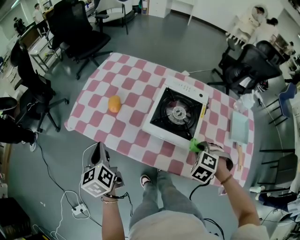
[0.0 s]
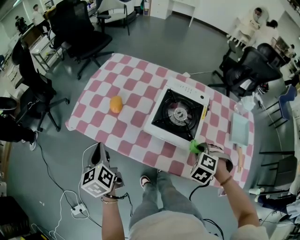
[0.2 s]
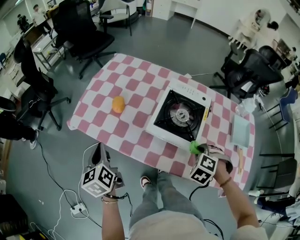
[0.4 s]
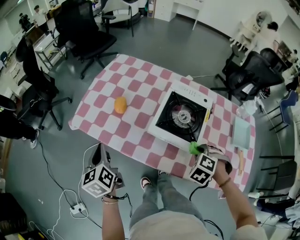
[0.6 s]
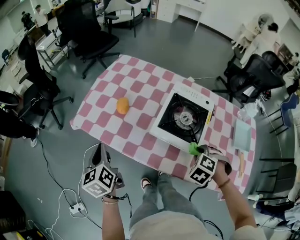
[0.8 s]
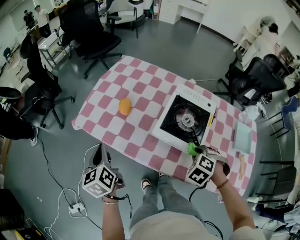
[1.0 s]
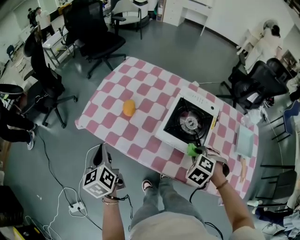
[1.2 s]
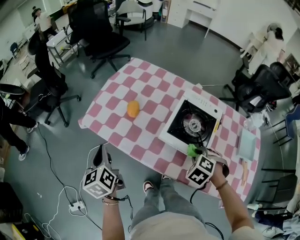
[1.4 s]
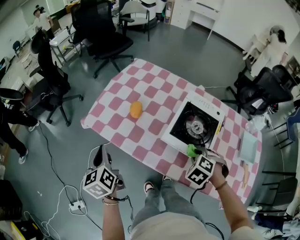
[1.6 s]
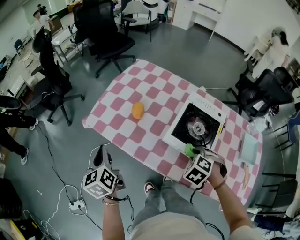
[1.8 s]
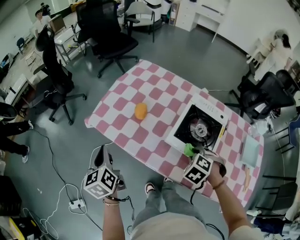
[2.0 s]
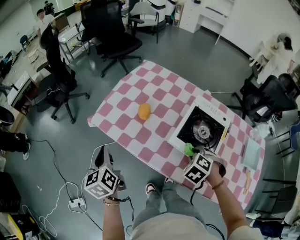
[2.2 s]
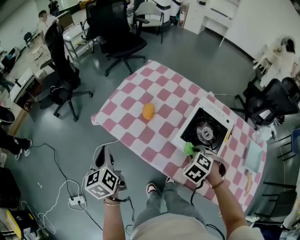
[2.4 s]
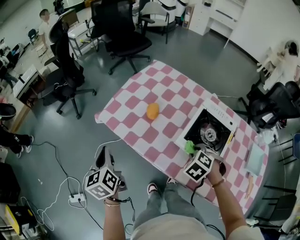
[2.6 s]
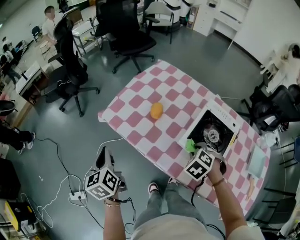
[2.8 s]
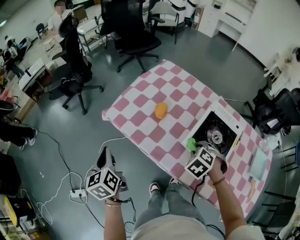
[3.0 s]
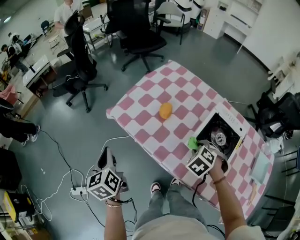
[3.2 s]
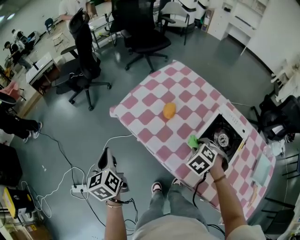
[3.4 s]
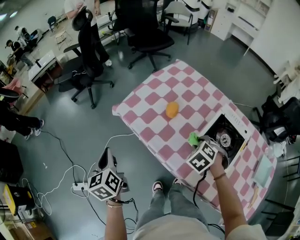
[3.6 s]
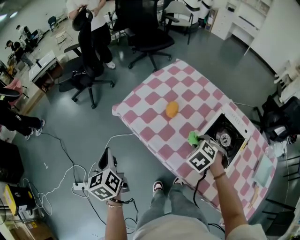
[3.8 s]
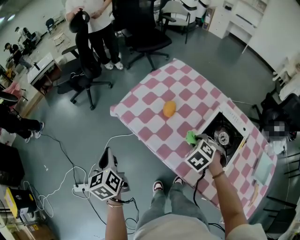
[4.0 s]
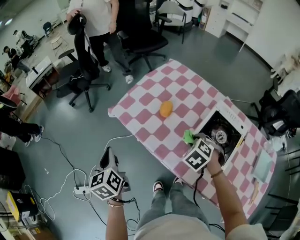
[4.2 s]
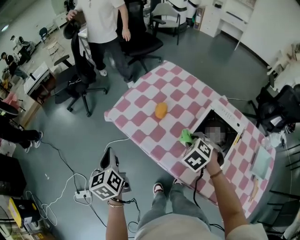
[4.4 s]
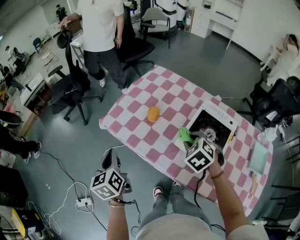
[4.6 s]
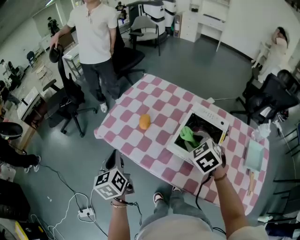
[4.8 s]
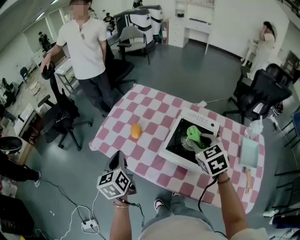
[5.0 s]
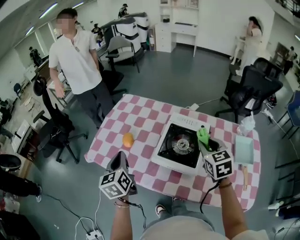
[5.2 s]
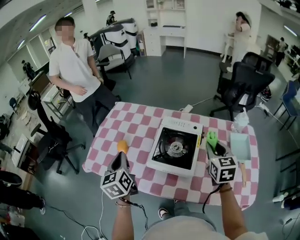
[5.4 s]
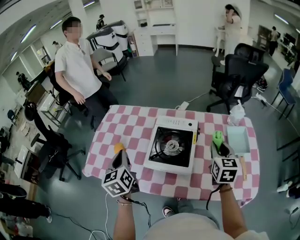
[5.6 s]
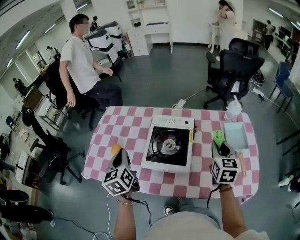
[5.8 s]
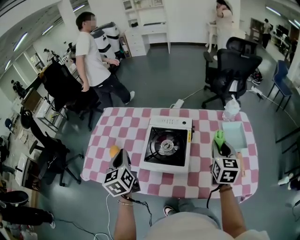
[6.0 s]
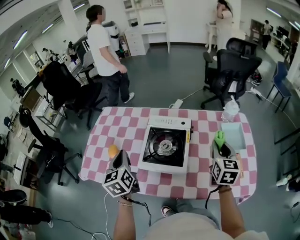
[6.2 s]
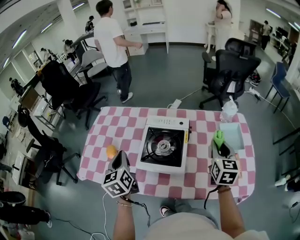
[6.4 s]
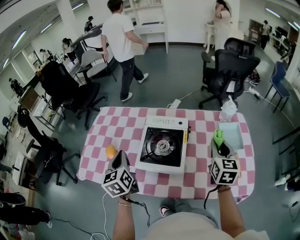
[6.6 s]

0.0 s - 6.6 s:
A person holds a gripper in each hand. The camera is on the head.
0.0 s - 1.6 s: The grippers both shift to the left by some 10 cm.
1.6 s - 3.2 s: The left gripper shifts approximately 10 cm to the left and backward. The right gripper goes about 15 cm to the left and forward.
3.2 s - 5.0 s: The left gripper travels to the right by approximately 20 cm, and rotates about 20 degrees. Meanwhile the right gripper goes about 20 cm upward and to the right, and changes its angle by about 50 degrees.
5.0 s - 6.6 s: The right gripper ends up roughly 25 cm from where it was, and changes its angle by roughly 50 degrees. Meanwhile the left gripper shifts by about 20 cm.

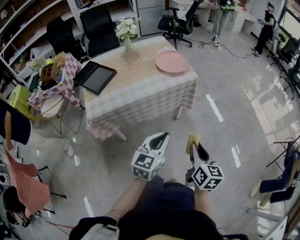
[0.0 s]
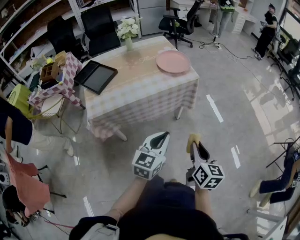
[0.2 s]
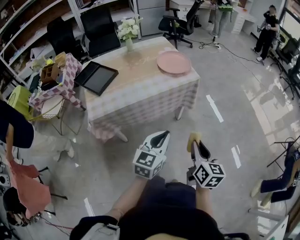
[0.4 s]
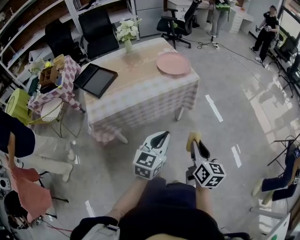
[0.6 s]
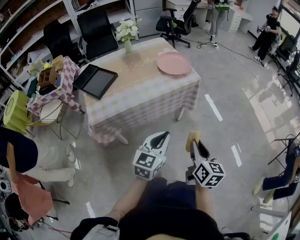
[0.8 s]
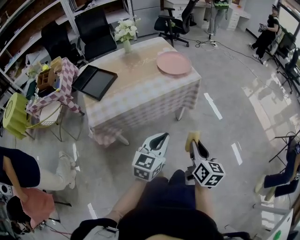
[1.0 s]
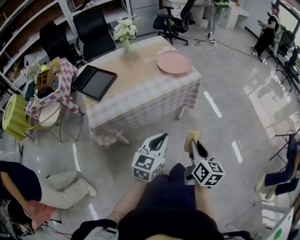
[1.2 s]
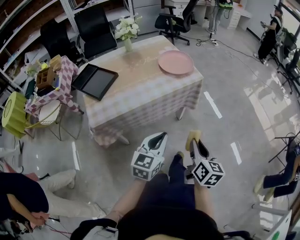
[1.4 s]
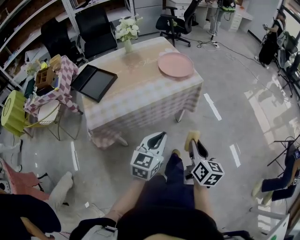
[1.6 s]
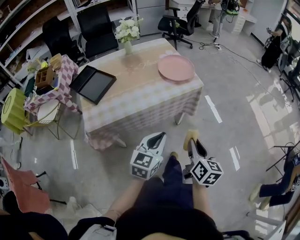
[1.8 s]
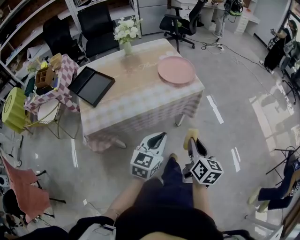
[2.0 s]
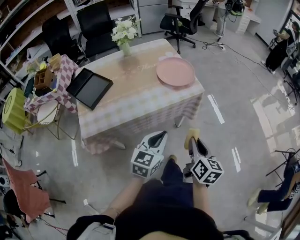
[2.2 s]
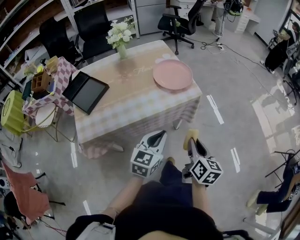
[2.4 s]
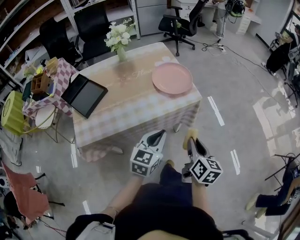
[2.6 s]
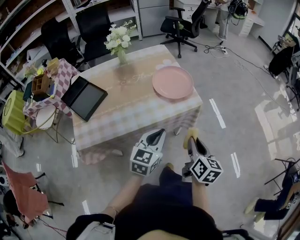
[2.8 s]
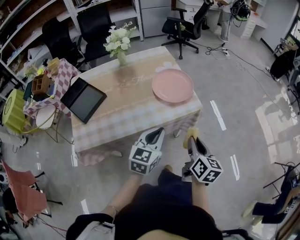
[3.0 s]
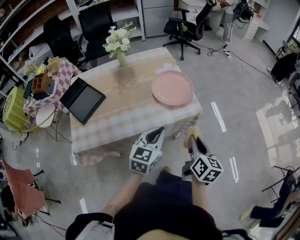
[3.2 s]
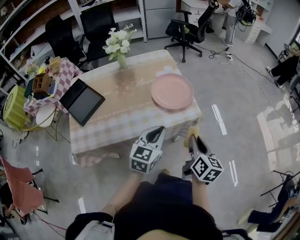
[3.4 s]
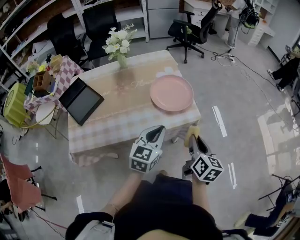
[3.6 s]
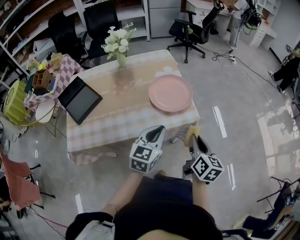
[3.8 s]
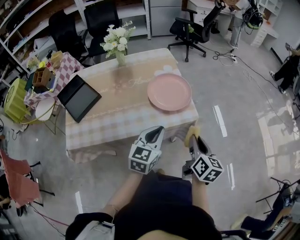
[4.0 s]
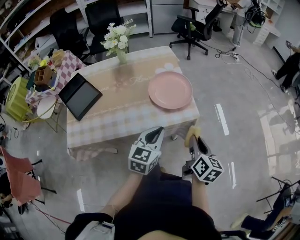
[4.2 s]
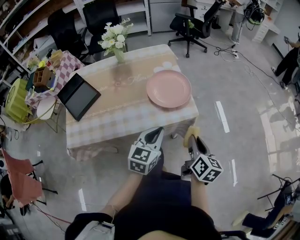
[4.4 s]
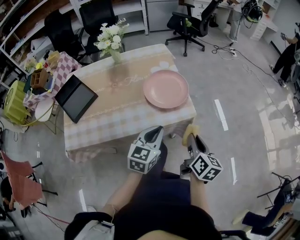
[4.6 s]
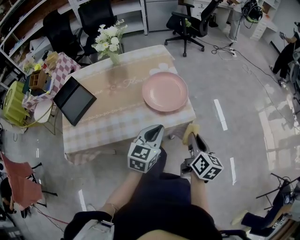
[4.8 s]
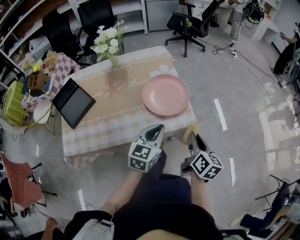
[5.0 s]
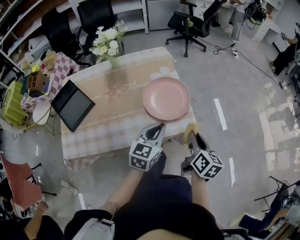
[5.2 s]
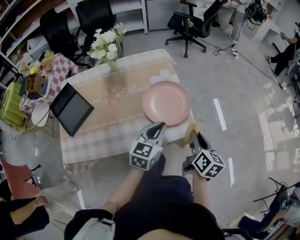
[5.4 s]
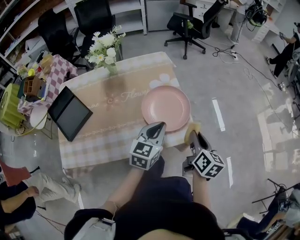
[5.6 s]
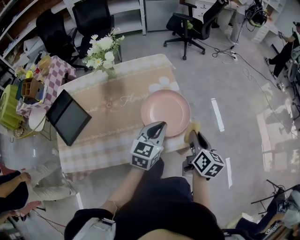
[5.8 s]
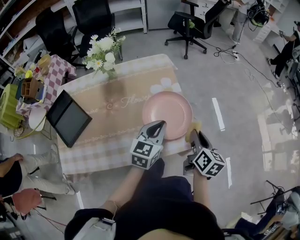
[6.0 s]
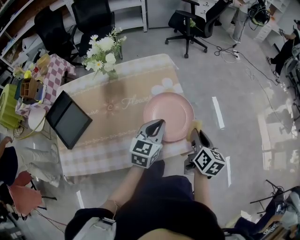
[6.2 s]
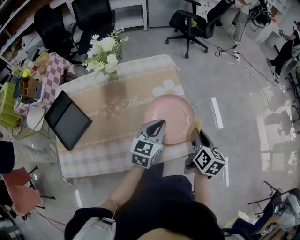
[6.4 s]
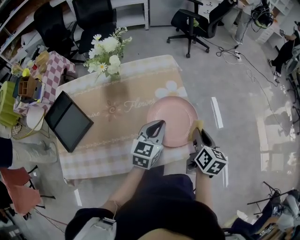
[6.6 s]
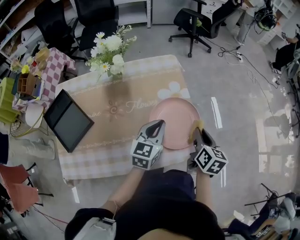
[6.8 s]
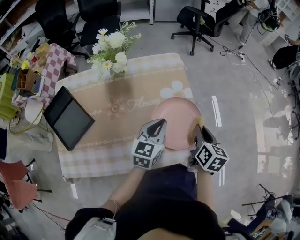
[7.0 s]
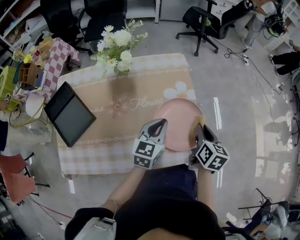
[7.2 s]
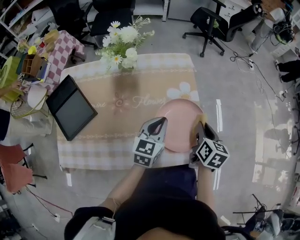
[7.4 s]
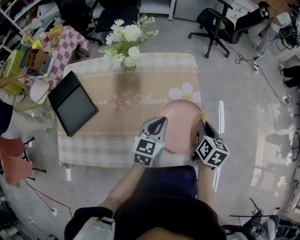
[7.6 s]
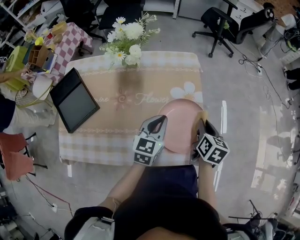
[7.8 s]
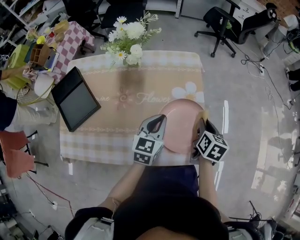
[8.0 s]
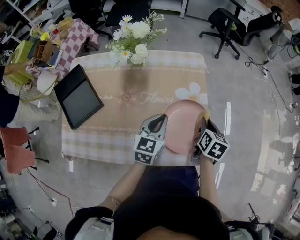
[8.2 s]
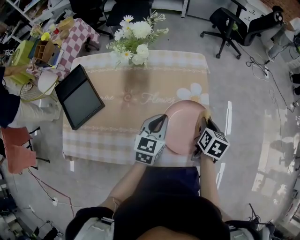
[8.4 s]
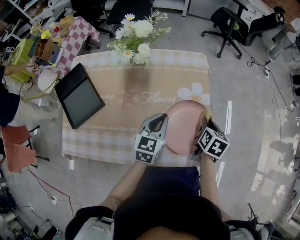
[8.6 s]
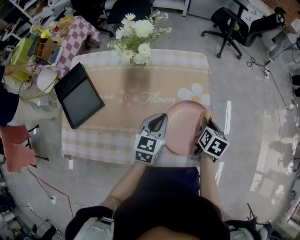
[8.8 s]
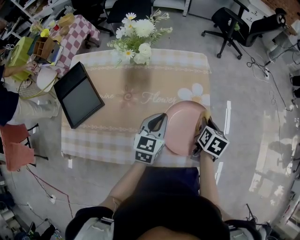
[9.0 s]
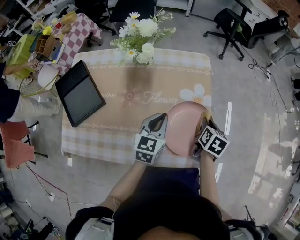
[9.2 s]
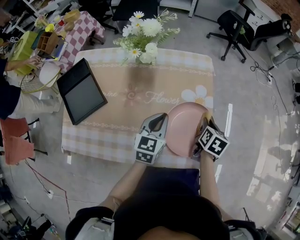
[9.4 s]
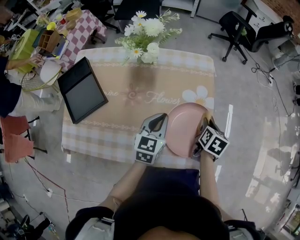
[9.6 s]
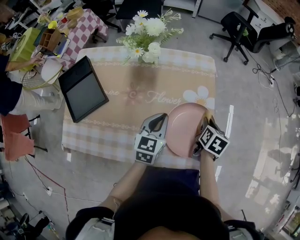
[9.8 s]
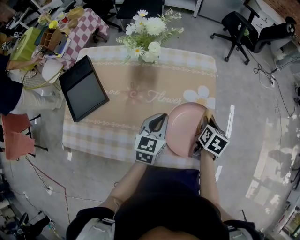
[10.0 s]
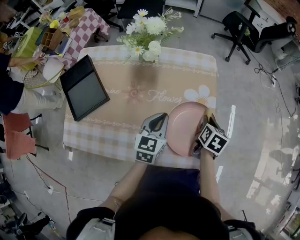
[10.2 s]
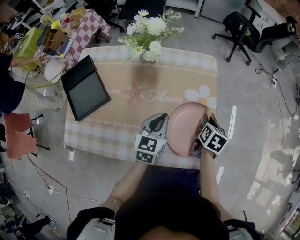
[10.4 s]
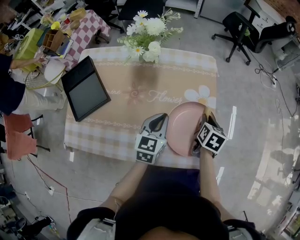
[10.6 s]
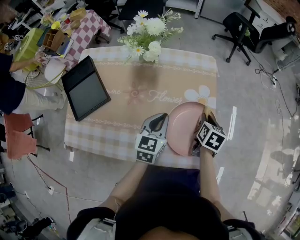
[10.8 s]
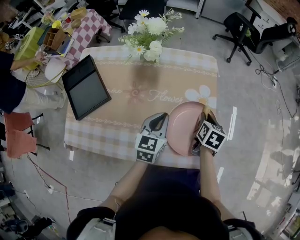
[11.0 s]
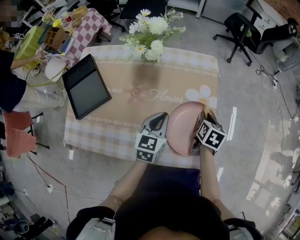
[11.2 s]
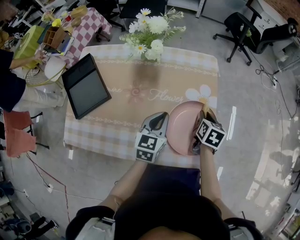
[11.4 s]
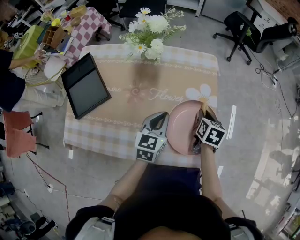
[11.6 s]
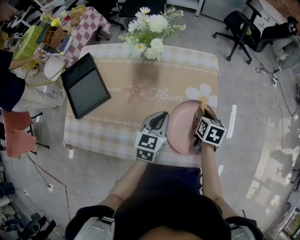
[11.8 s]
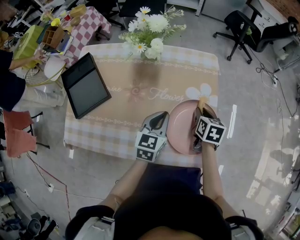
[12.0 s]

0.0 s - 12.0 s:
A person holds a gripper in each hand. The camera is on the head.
0.0 s - 1.6 s: The left gripper travels to the left by some 5 cm. Meanwhile the right gripper is displaced to the left and forward by approximately 10 cm.
1.6 s - 3.0 s: Both grippers move forward, about 20 cm.
3.0 s - 4.4 s: Both grippers move forward, approximately 5 cm.
4.4 s - 6.0 s: The grippers both shift forward by roughly 20 cm.
6.0 s - 7.6 s: The right gripper shifts some 15 cm forward and to the left. The left gripper travels to the left and forward by some 10 cm.
7.6 s - 9.0 s: The right gripper is displaced downward by some 5 cm.
9.0 s - 10.4 s: The grippers stay close to where they were, moving slightly.
10.4 s - 12.0 s: The right gripper shifts by approximately 5 cm.

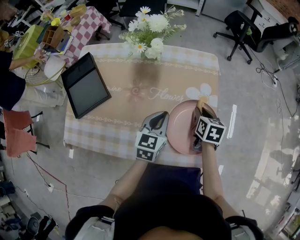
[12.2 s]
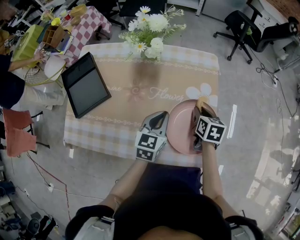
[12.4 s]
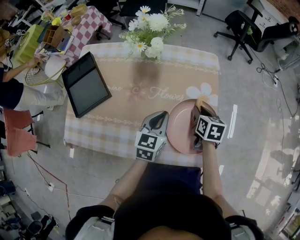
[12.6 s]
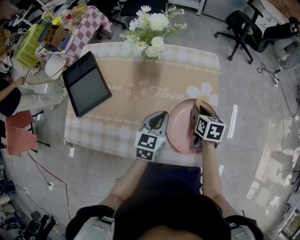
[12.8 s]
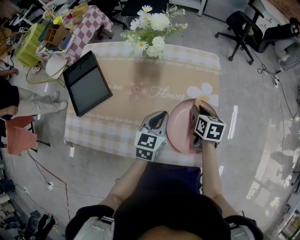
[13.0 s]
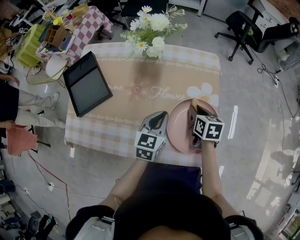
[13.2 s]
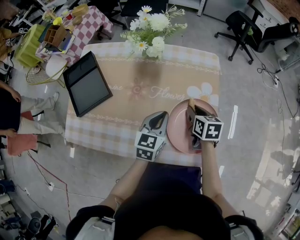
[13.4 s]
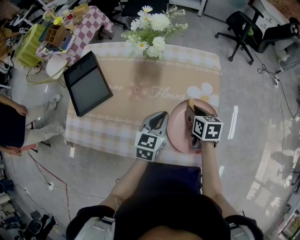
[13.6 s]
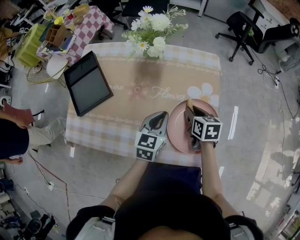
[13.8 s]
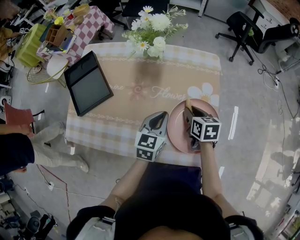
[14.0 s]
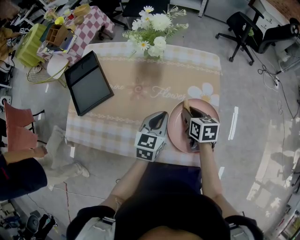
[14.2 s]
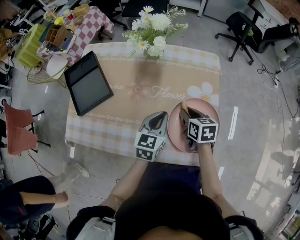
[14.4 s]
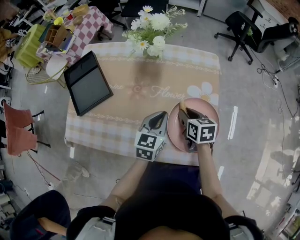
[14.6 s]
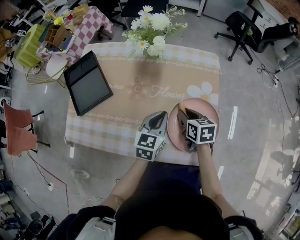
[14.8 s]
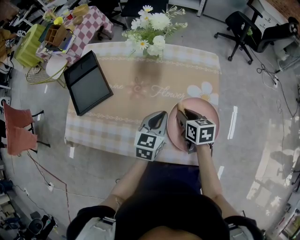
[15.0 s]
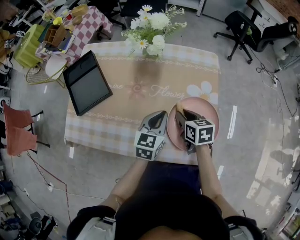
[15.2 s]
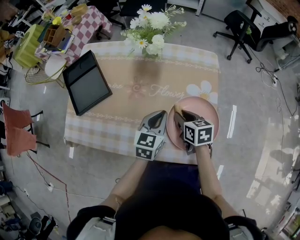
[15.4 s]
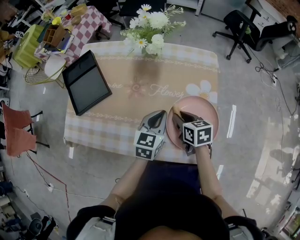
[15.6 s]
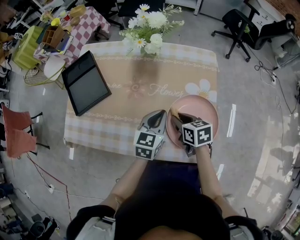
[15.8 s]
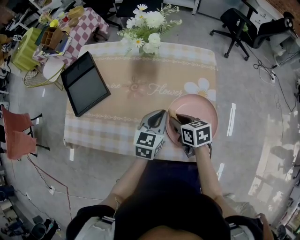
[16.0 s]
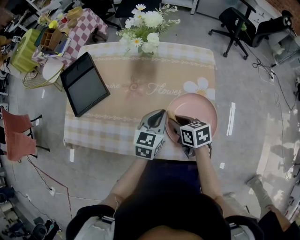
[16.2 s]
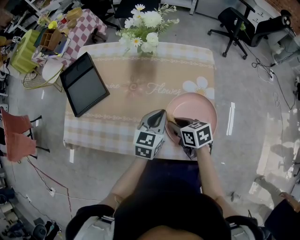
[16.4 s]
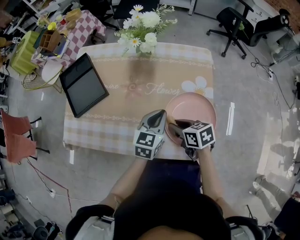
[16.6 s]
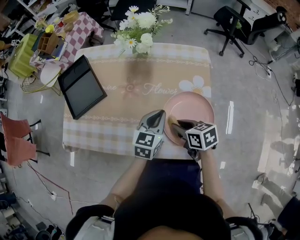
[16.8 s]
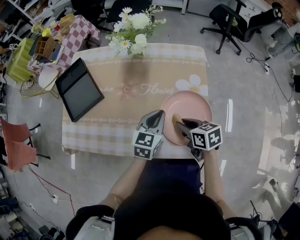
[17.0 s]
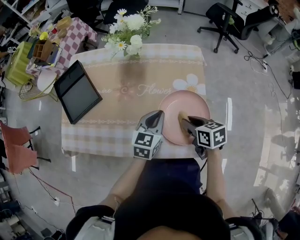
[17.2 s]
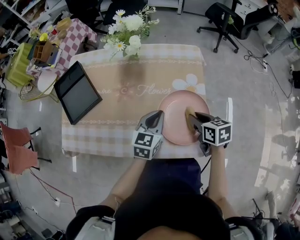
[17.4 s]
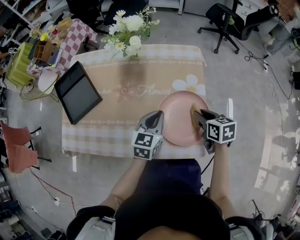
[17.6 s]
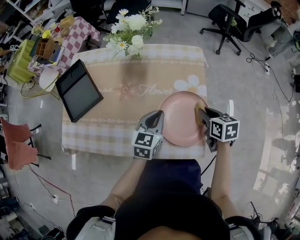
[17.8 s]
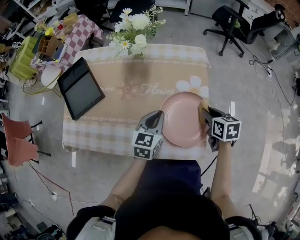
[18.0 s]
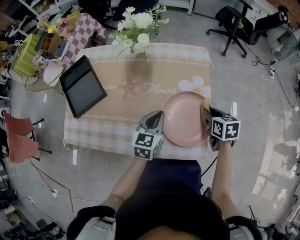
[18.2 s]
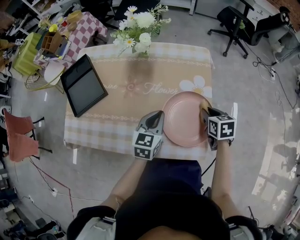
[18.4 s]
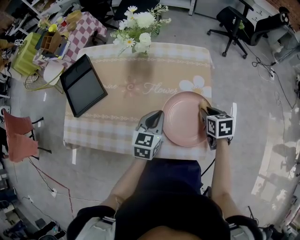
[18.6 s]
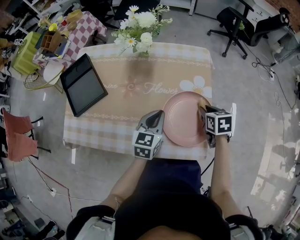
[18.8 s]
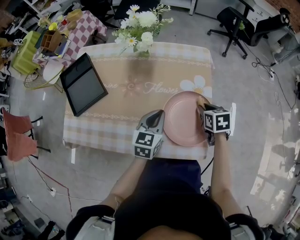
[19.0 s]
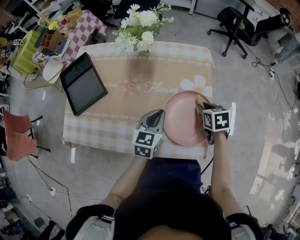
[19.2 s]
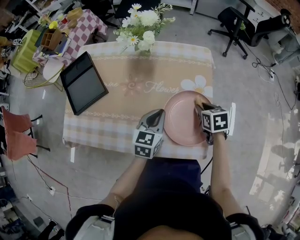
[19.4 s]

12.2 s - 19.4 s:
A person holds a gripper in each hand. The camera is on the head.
12.2 s - 13.6 s: The grippers move only a little.
13.6 s - 15.0 s: The right gripper changes place by roughly 5 cm.
15.0 s - 16.6 s: The right gripper travels backward by roughly 5 cm.
16.6 s - 18.0 s: The right gripper goes some 20 cm to the right, and turns by some 20 degrees.
18.0 s - 19.4 s: The right gripper changes place by roughly 5 cm.
